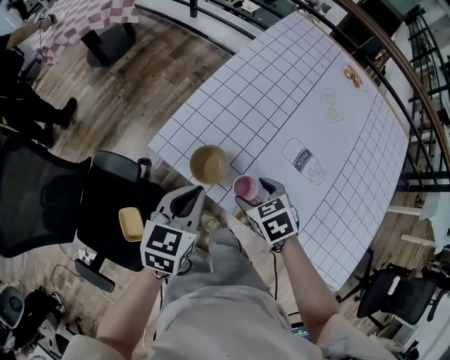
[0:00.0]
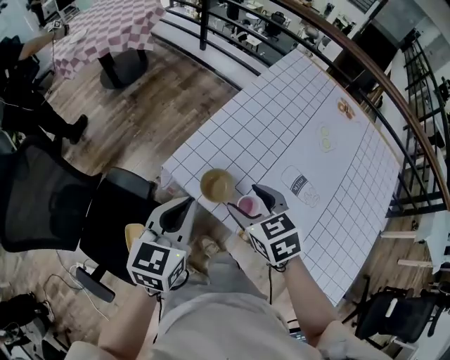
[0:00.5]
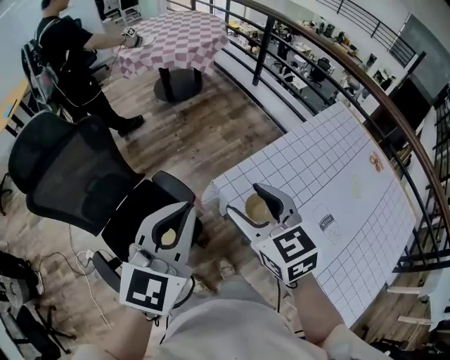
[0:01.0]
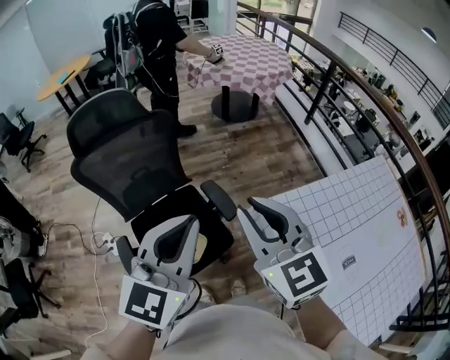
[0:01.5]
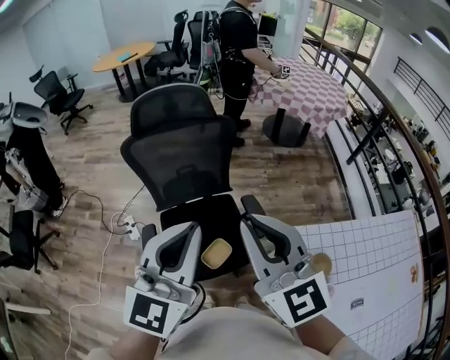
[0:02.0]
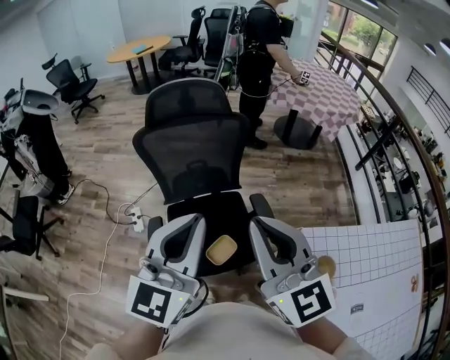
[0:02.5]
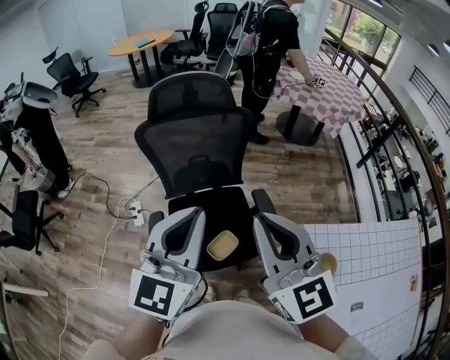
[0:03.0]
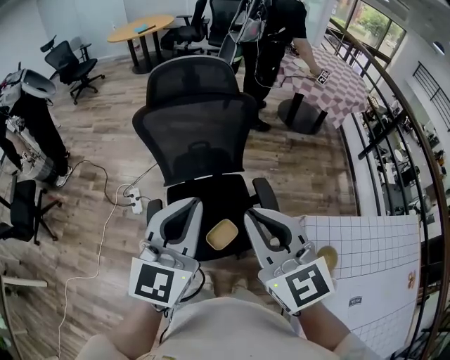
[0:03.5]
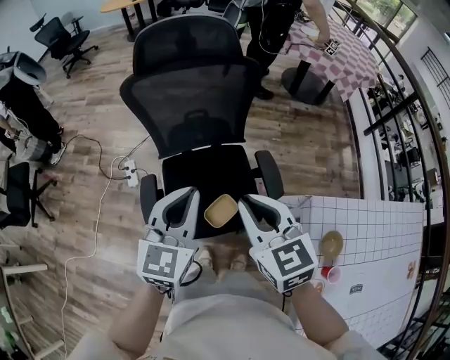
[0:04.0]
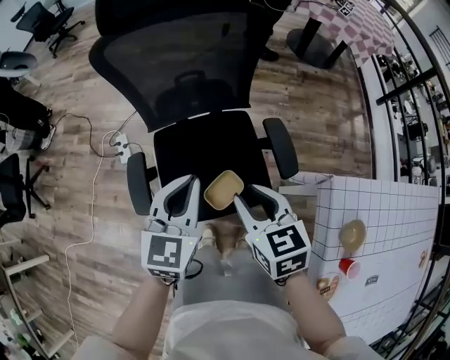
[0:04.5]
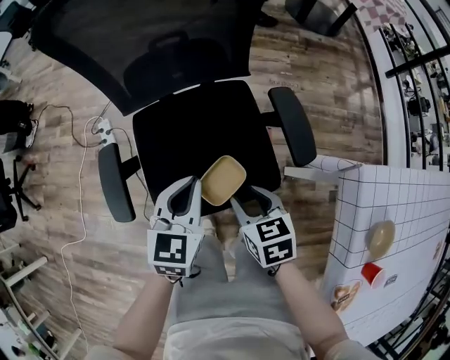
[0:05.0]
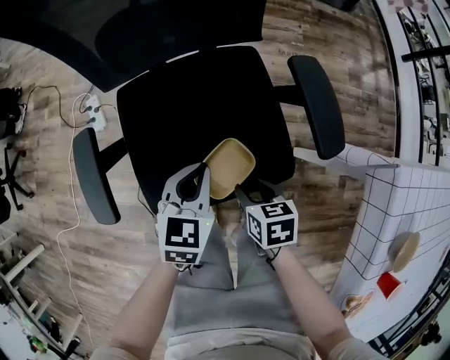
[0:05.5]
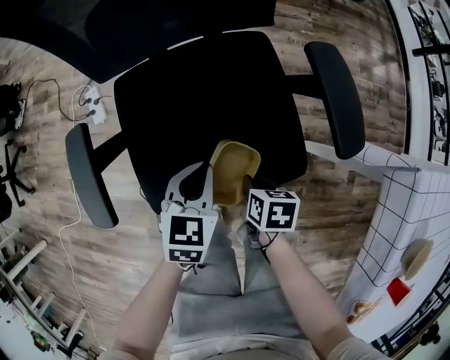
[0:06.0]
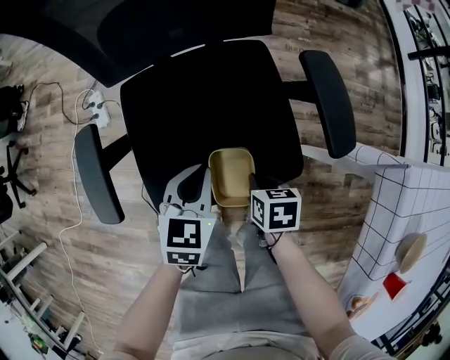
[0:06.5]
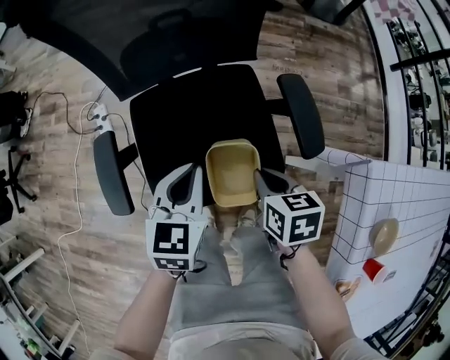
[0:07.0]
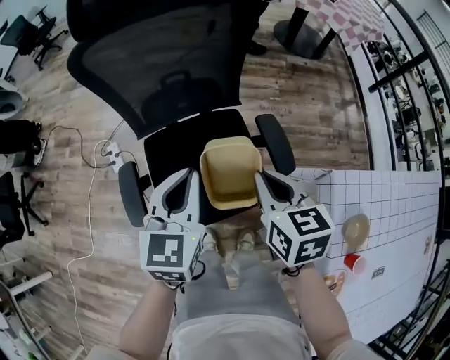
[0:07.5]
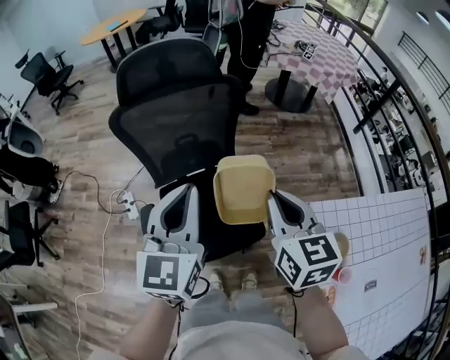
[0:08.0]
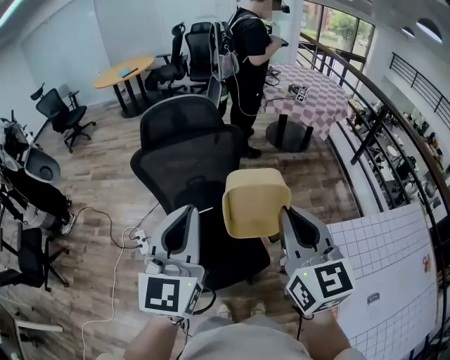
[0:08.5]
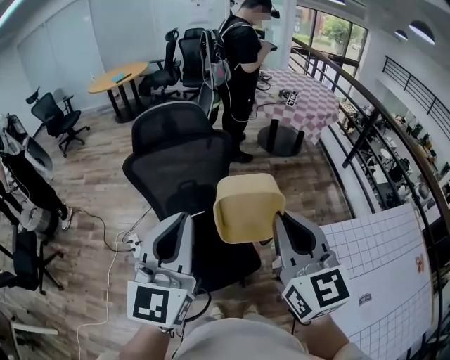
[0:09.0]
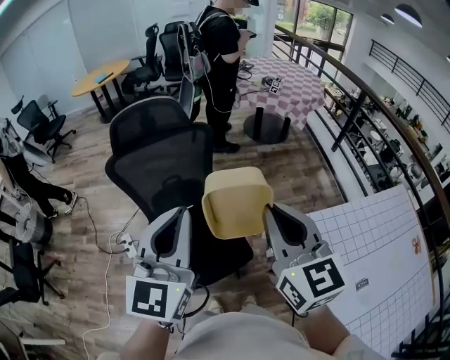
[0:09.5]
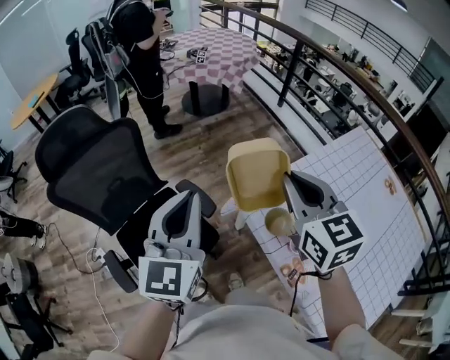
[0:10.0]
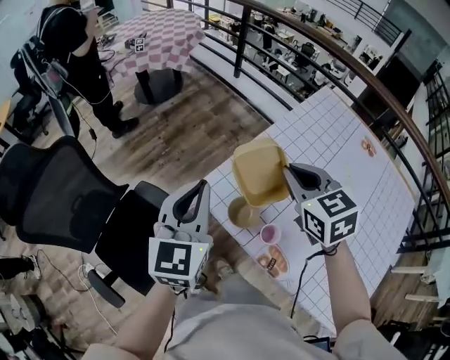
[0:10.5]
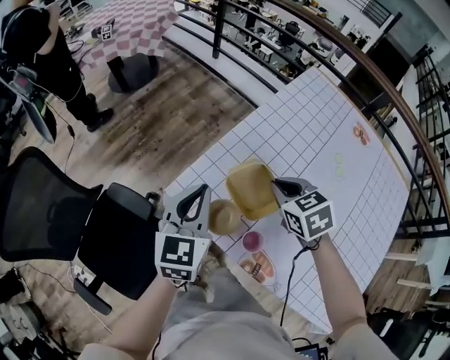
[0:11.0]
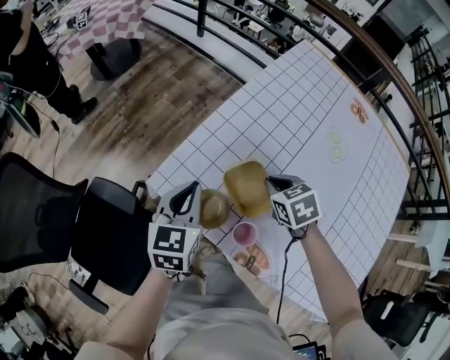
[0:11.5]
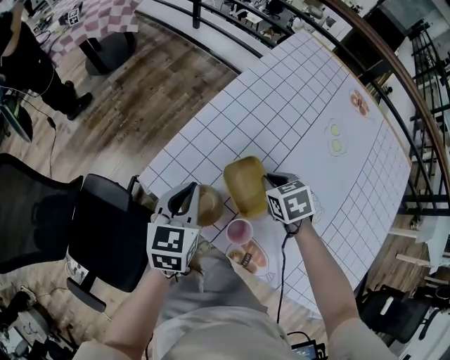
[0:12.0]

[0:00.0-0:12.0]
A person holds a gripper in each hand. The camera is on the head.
0:00.0 to 0:02.0: The two grippers travel together, about 40 cm. The left gripper points its fingers roughly 40 degrees further upward. The right gripper is displaced upward by approximately 40 cm, tips its fingers upward by about 60 degrees, and closes.
0:02.0 to 0:04.0: The right gripper moves downward, roughly 20 cm, and rotates roughly 30 degrees, while the left gripper heads downward and forward, covering approximately 20 cm.
0:04.0 to 0:06.0: The two grippers go roughly 60 cm downward. The right gripper angles its fingers downward, by about 40 degrees; the left gripper tilts its fingers approximately 30 degrees downward.
0:06.0 to 0:08.0: Both grippers move upward, roughly 60 cm. The left gripper tilts its fingers approximately 40 degrees upward. Meanwhile the right gripper angles its fingers upward, by about 50 degrees.
0:08.0 to 0:10.0: The left gripper ends up roughly 25 cm from where it was, and turns by approximately 30 degrees, while the right gripper shifts by about 30 cm, and rotates some 20 degrees.
0:10.0 to 0:12.0: The left gripper goes approximately 40 cm downward, to the right and forward, and changes its angle by approximately 40 degrees; the right gripper goes approximately 50 cm downward and to the right, and tilts its fingers roughly 50 degrees downward.

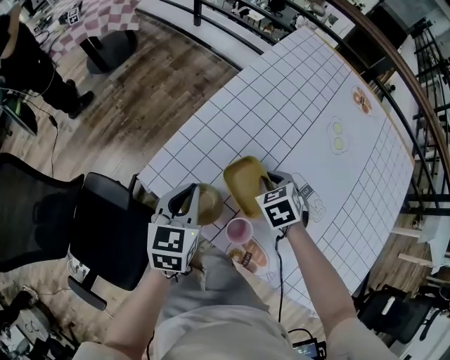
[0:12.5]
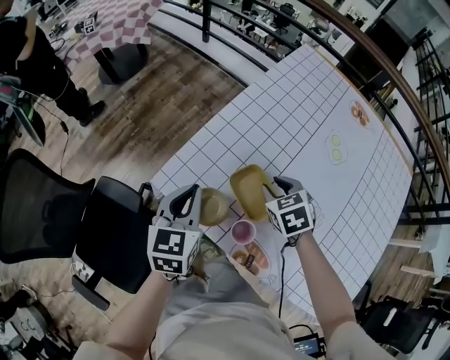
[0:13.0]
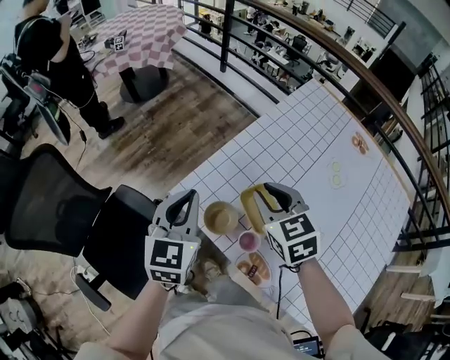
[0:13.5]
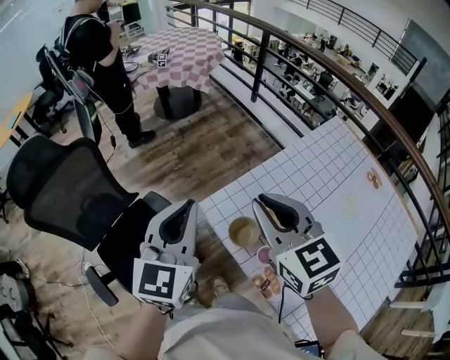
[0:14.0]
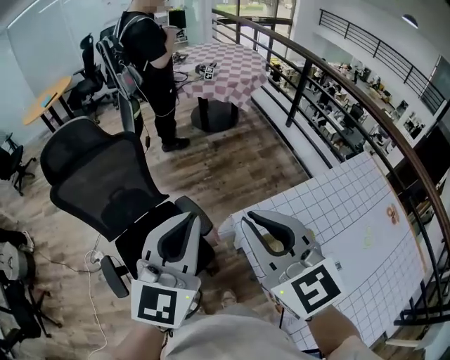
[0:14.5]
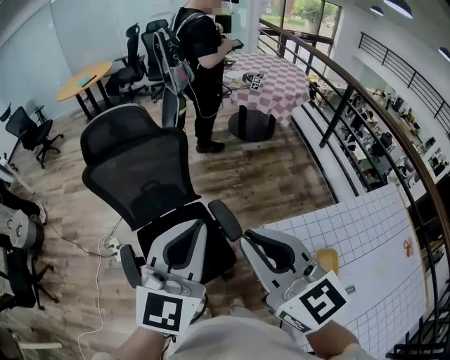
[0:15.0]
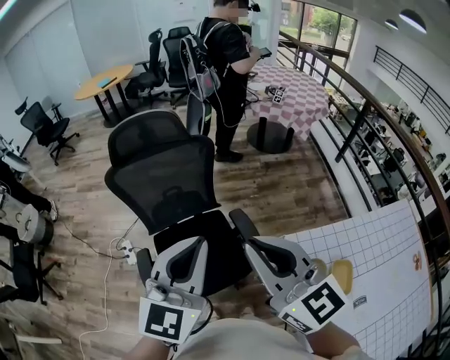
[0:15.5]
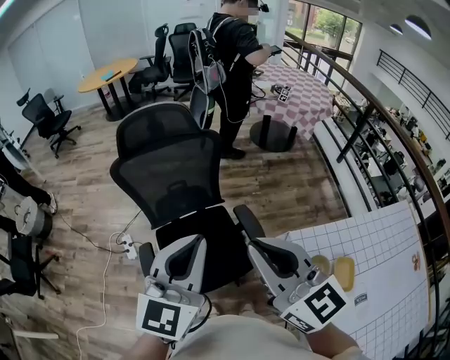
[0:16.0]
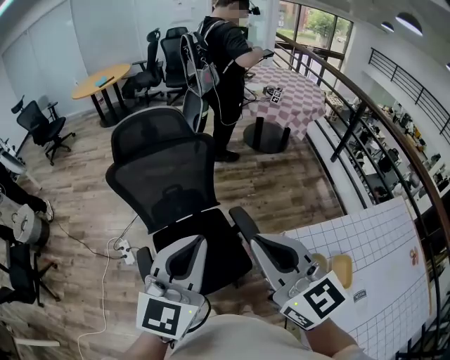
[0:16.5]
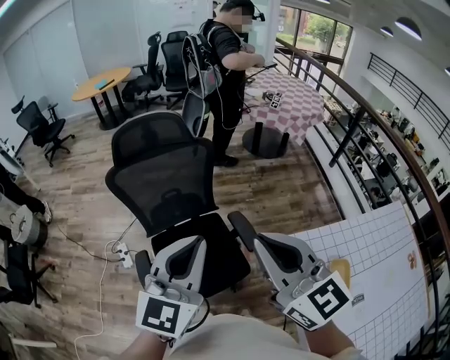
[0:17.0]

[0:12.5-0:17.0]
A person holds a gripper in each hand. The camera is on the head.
0:12.5 to 0:14.5: The grippers both shift upward by approximately 40 cm. The right gripper tilts its fingers roughly 50 degrees upward, while the left gripper points its fingers about 30 degrees further upward.
0:14.5 to 0:17.0: The grippers both shift to the left by some 20 cm.

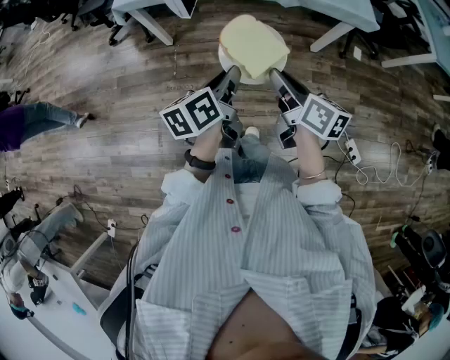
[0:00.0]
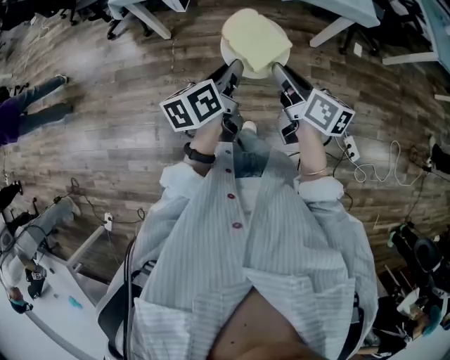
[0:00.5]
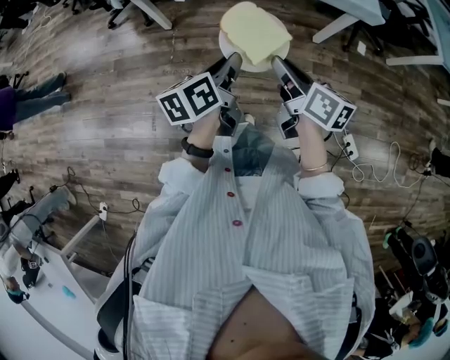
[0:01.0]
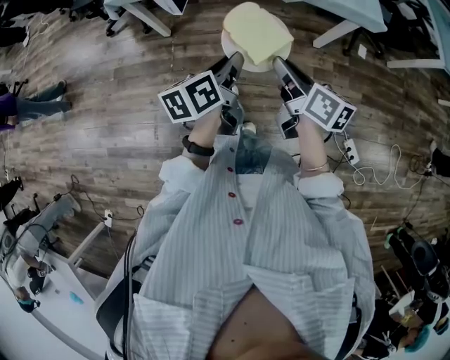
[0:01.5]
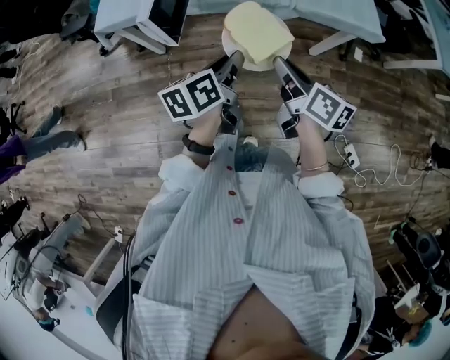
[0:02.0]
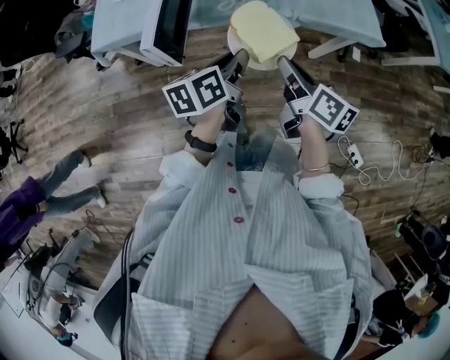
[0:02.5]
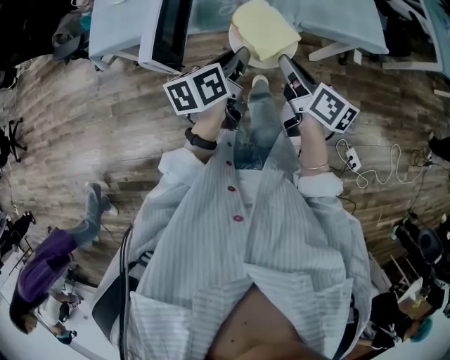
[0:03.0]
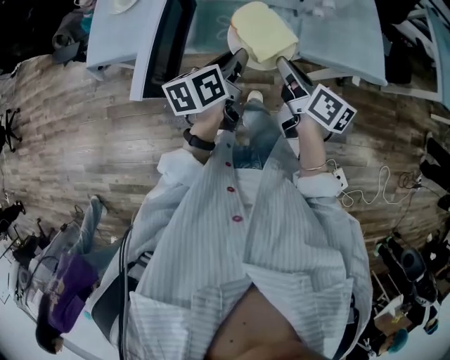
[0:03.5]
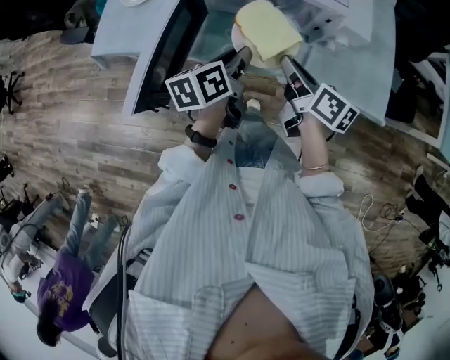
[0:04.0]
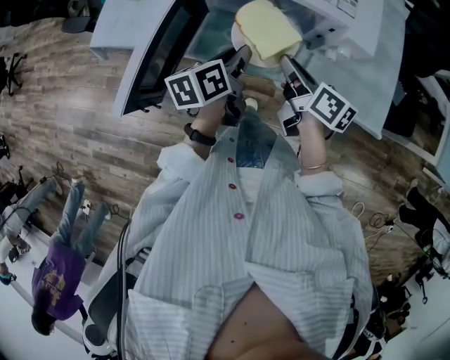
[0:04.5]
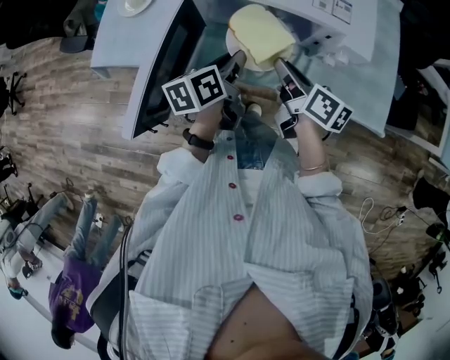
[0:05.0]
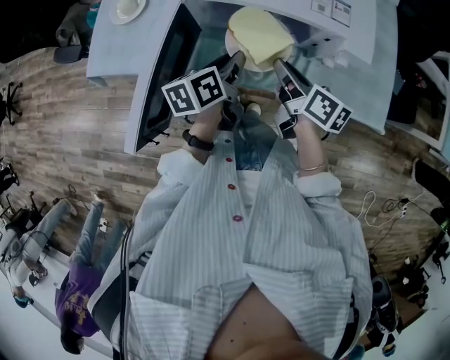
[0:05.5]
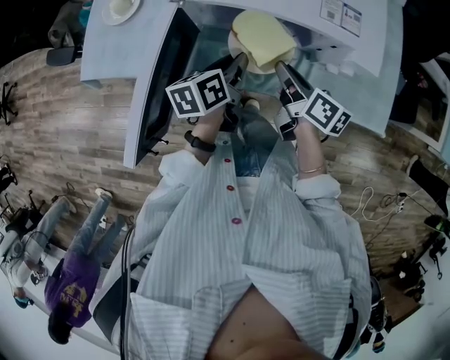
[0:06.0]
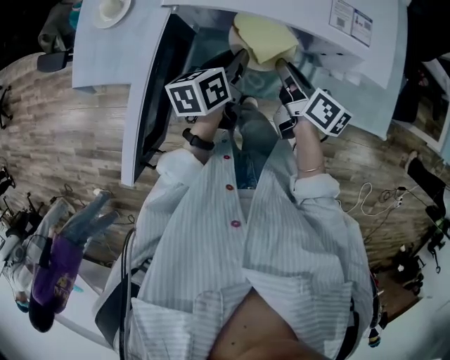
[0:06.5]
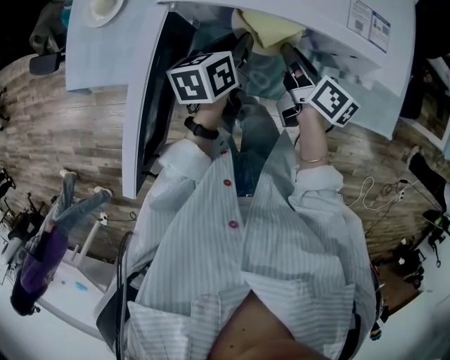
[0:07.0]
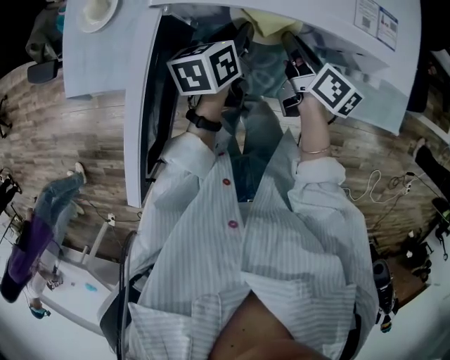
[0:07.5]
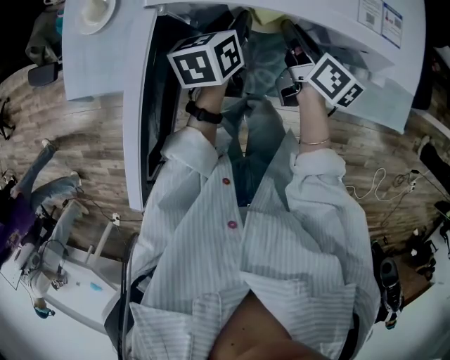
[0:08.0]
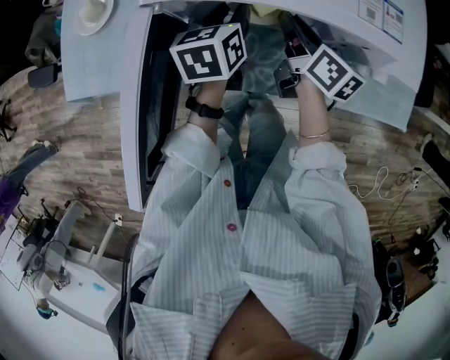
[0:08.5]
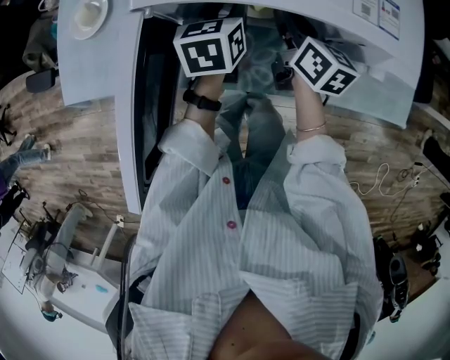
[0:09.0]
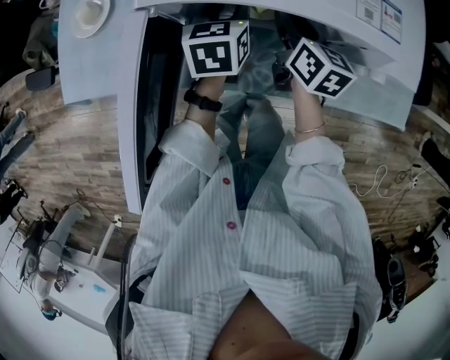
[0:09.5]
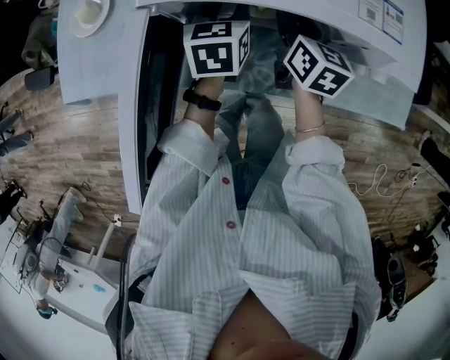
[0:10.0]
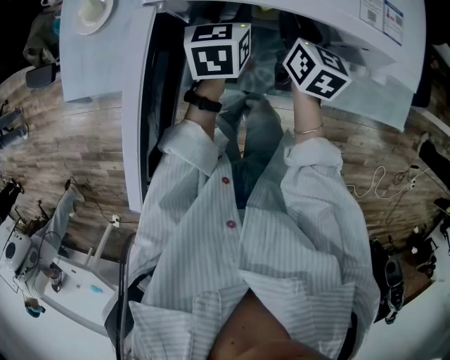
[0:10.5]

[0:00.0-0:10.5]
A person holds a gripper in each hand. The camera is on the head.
0:00.0 to 0:02.0: Both grippers travel together forward, about 20 cm.
0:02.0 to 0:04.0: The grippers both shift forward by roughly 30 cm.
0:04.0 to 0:06.5: Both grippers travel together forward and downward, approximately 10 cm.
0:06.5 to 0:08.5: Both grippers move forward, roughly 10 cm.
0:08.5 to 0:10.5: The right gripper changes its angle by approximately 30 degrees.
